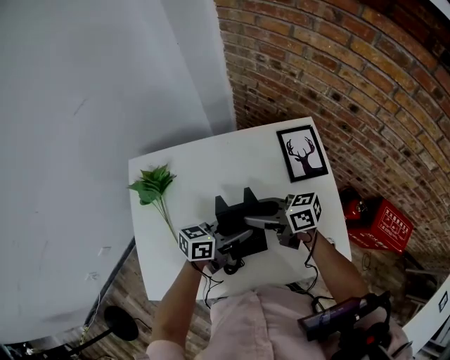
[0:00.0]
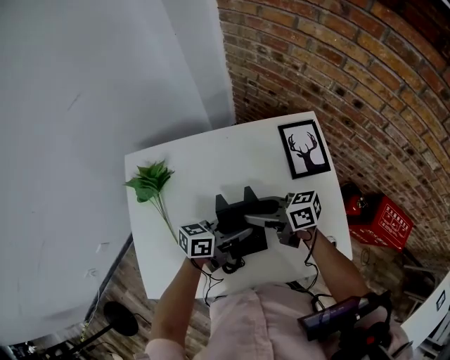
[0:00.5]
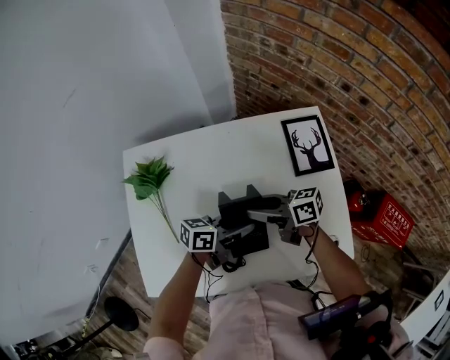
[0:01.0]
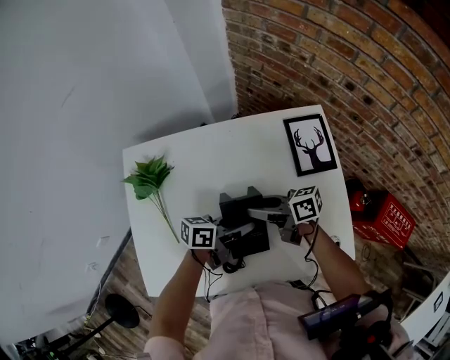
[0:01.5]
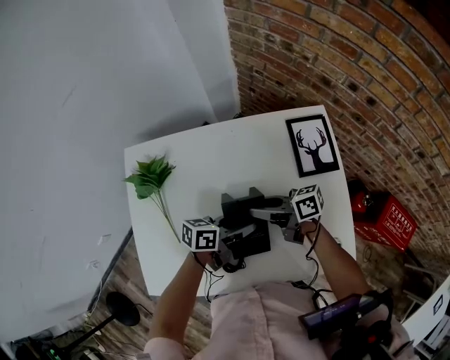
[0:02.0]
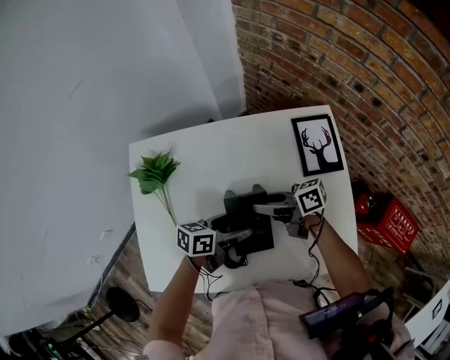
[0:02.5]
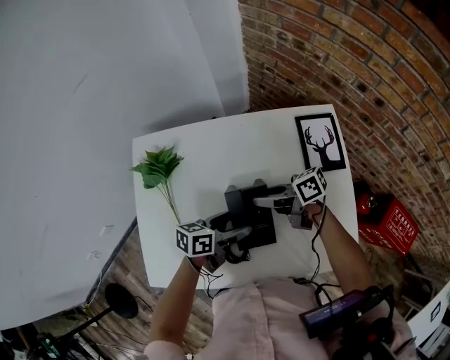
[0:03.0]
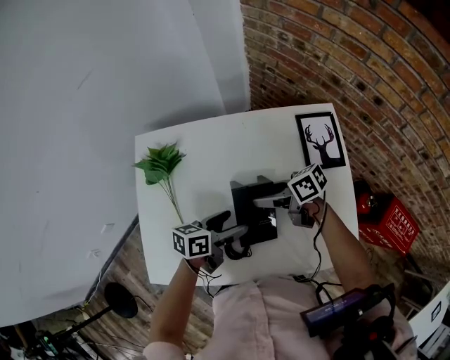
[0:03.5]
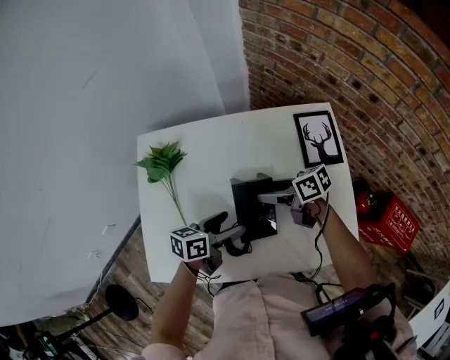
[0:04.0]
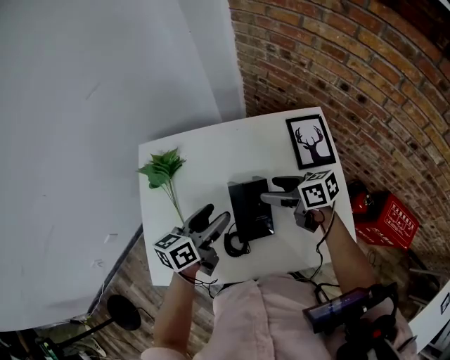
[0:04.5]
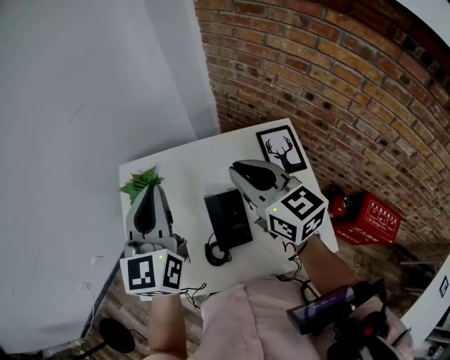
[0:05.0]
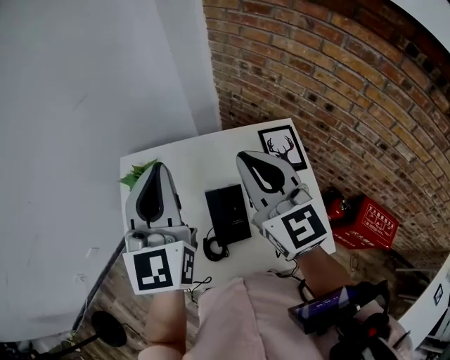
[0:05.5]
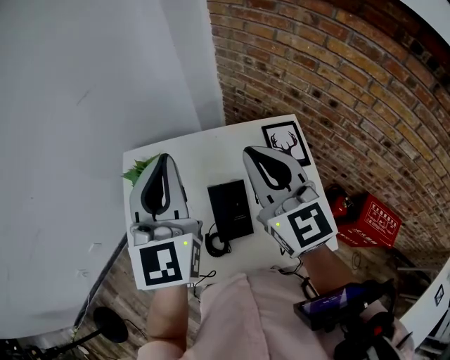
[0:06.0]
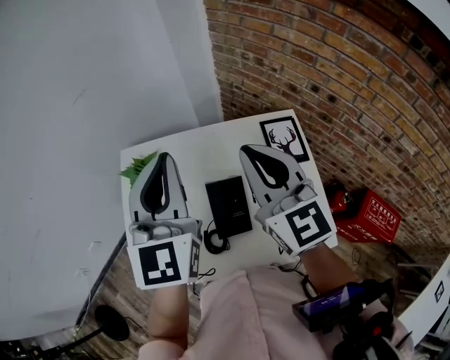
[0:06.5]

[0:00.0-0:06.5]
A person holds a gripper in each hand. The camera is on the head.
0:00.0 to 0:02.0: Both grippers travel together downward, some 5 cm.
0:02.0 to 0:04.5: The left gripper is displaced upward by approximately 10 cm, and changes its angle by roughly 30 degrees, while the right gripper shifts by roughly 5 cm, changes its angle by approximately 20 degrees, and opens its fingers.
0:04.5 to 0:06.5: The grippers both shift upward by roughly 25 cm. The right gripper turns by about 70 degrees, and closes its fingers. The left gripper turns by some 60 degrees, and closes its fingers.

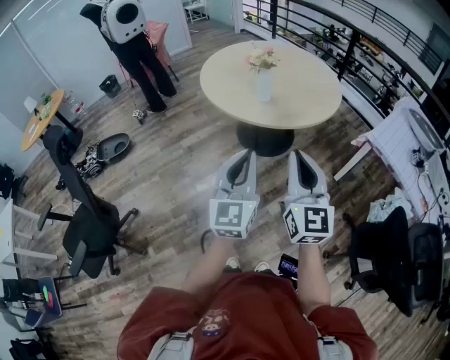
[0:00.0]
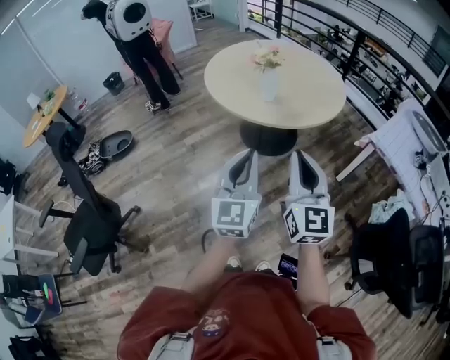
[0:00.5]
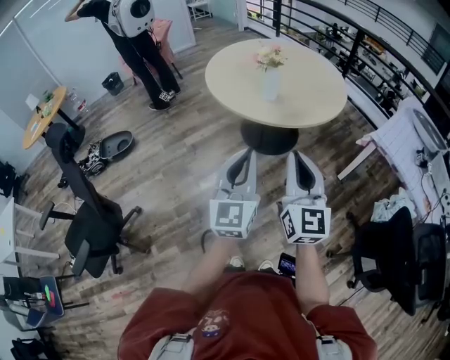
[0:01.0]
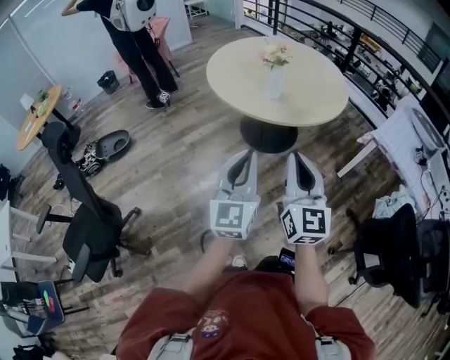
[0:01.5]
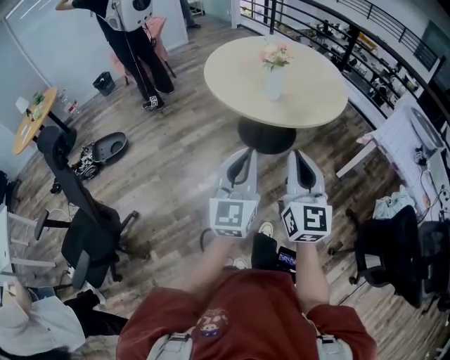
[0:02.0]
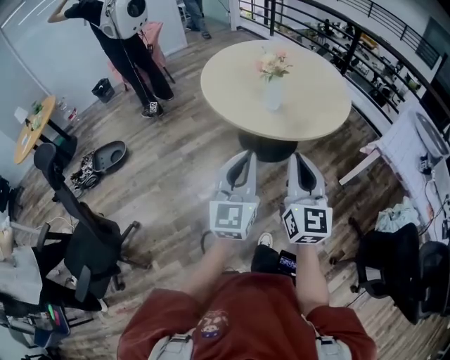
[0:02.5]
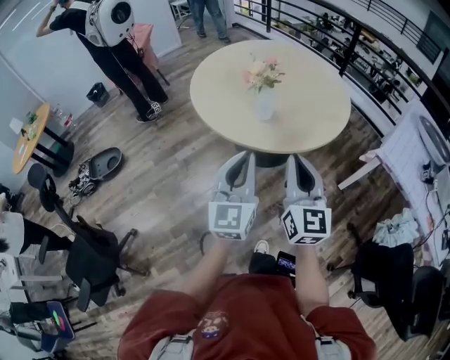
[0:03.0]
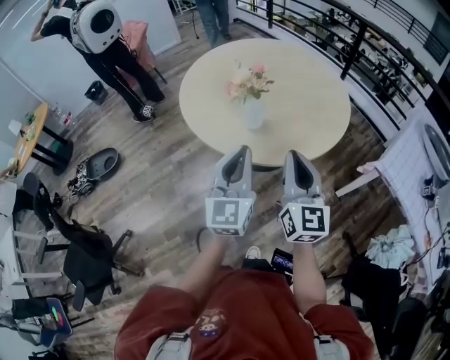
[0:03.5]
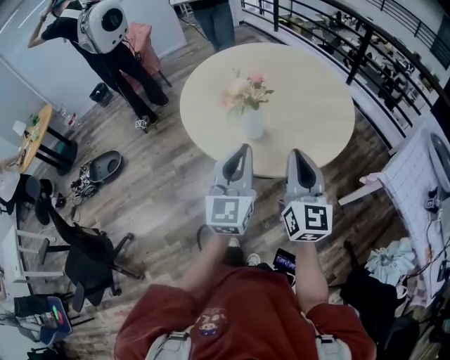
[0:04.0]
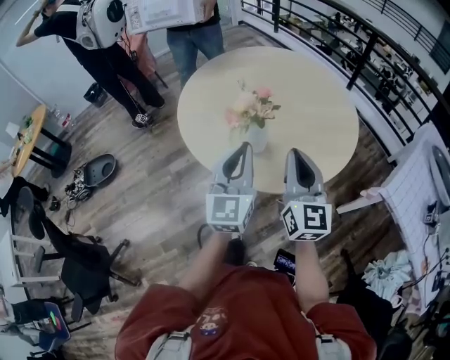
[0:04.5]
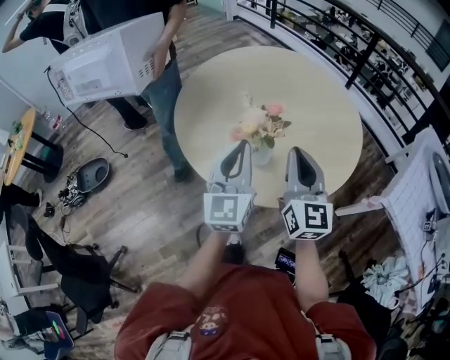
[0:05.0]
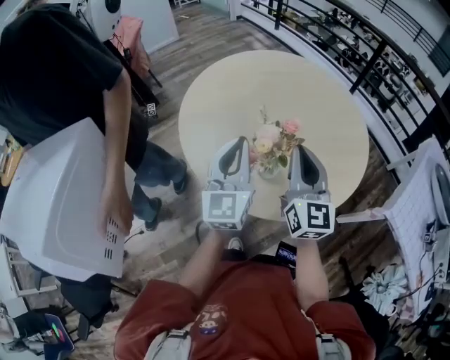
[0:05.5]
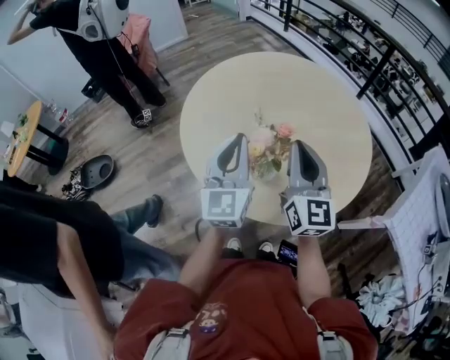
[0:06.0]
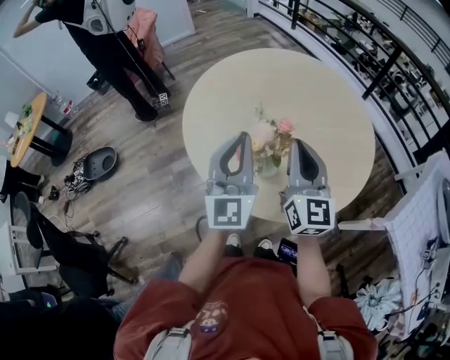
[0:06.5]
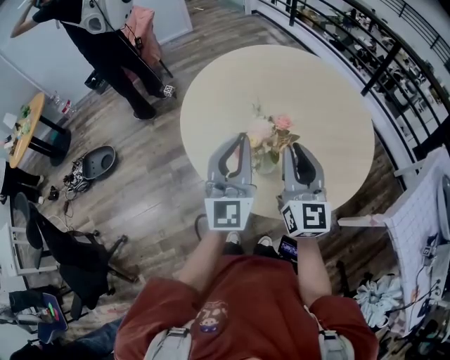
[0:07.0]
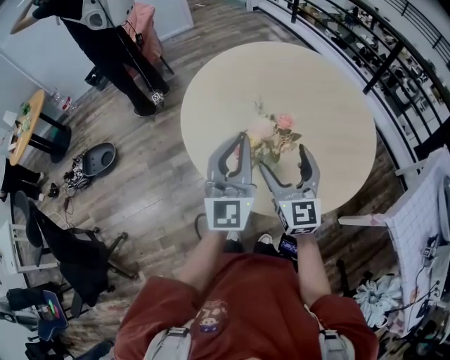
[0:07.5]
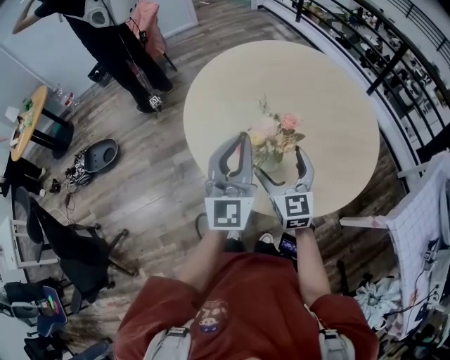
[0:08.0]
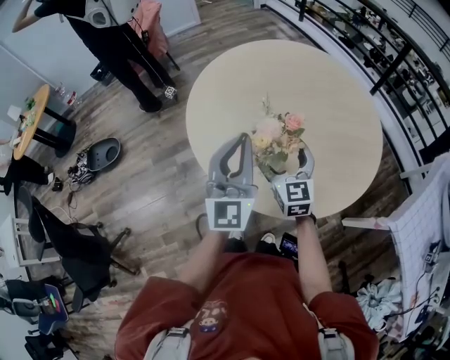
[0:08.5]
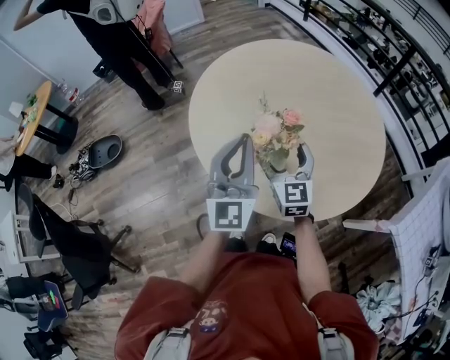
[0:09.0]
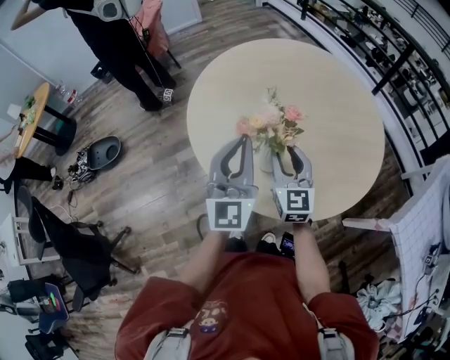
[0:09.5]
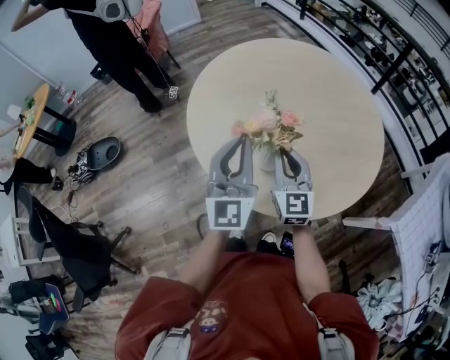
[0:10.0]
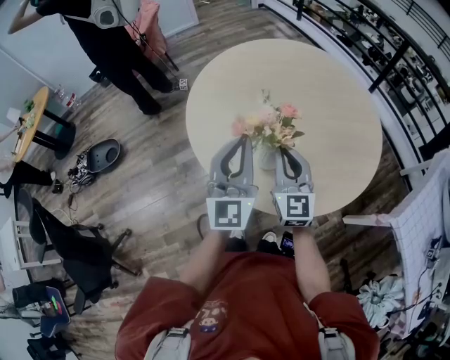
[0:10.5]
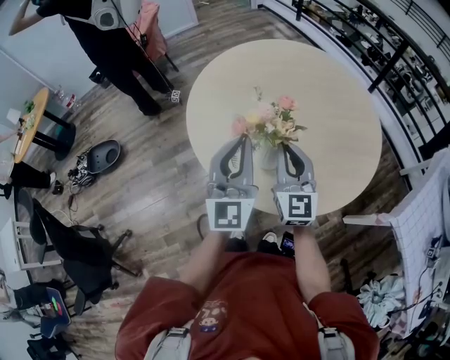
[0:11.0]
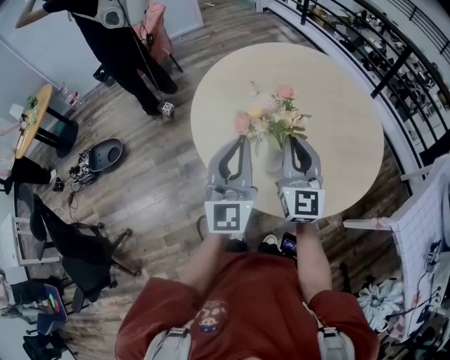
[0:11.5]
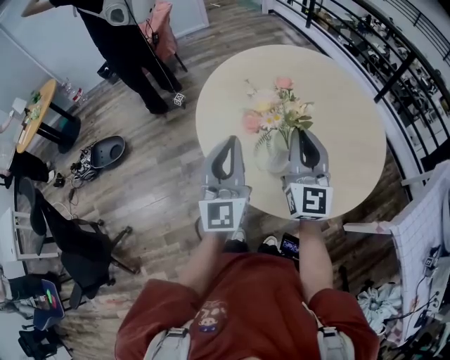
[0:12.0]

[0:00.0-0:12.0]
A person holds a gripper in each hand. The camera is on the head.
0:00.0 to 0:02.0: Both grippers travel together to the left, some 5 cm.
0:02.0 to 0:04.0: The grippers both shift forward and to the right by about 35 cm.
0:04.0 to 0:06.0: Both grippers travel together forward, some 25 cm.
0:06.0 to 0:08.0: The right gripper goes some 15 cm downward, swivels approximately 20 degrees, and opens.
0:08.0 to 0:10.0: The right gripper closes up.
0:10.0 to 0:12.0: The left gripper goes approximately 5 cm to the left. The right gripper travels upward by approximately 10 cm.

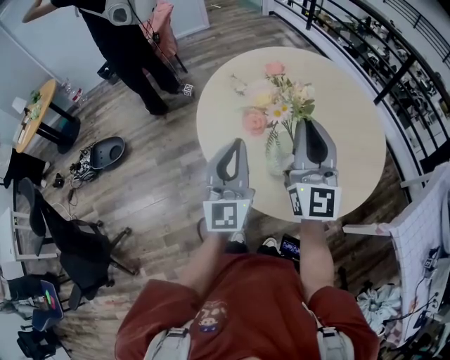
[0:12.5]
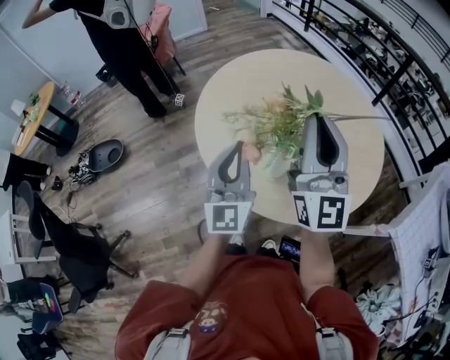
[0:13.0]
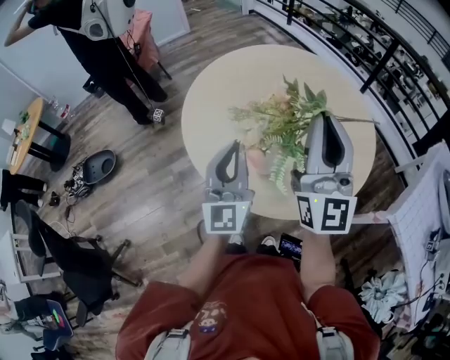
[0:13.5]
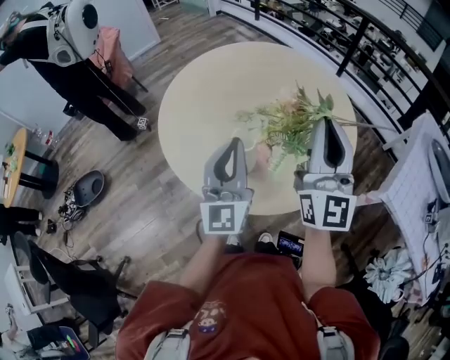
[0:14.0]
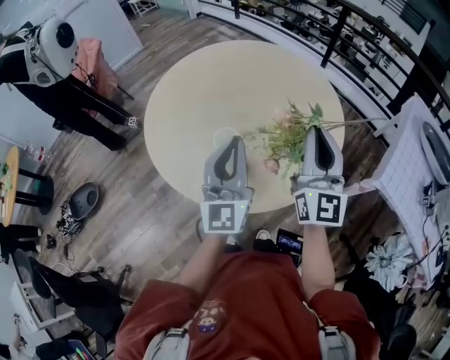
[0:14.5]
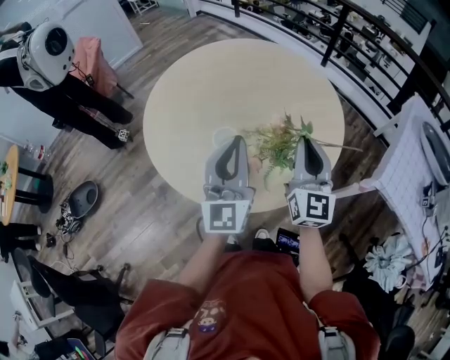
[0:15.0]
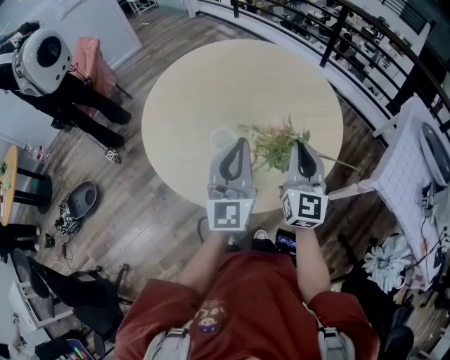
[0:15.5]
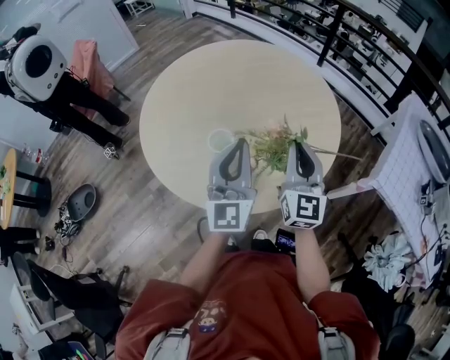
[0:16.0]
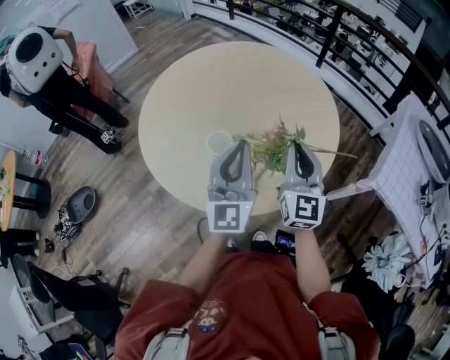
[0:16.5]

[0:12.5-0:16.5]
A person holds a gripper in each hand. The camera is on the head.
0:12.5 to 0:14.5: The two grippers go about 15 cm to the right. The right gripper swivels roughly 20 degrees.
0:14.5 to 0:16.5: The right gripper heads downward, covering roughly 10 cm.

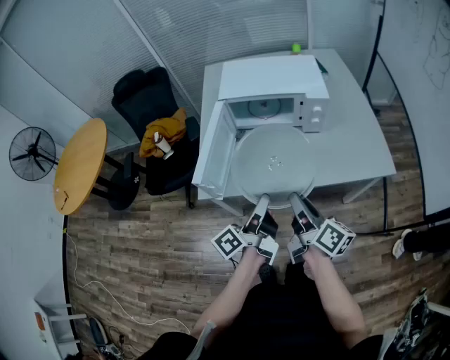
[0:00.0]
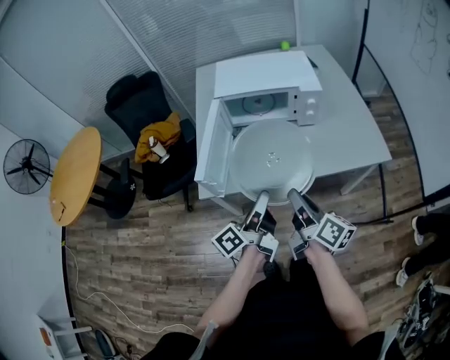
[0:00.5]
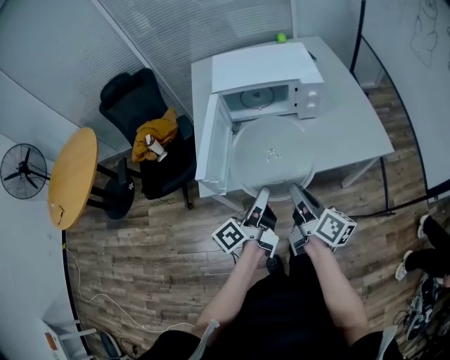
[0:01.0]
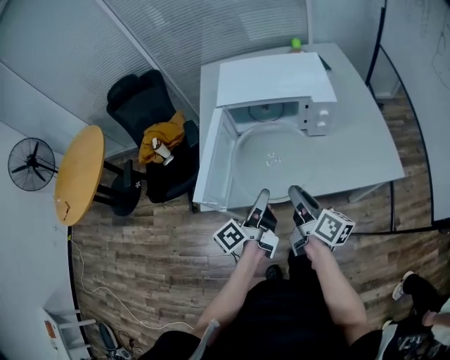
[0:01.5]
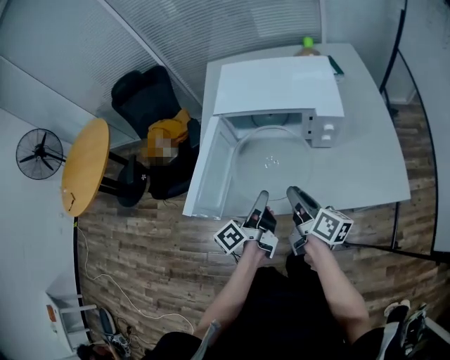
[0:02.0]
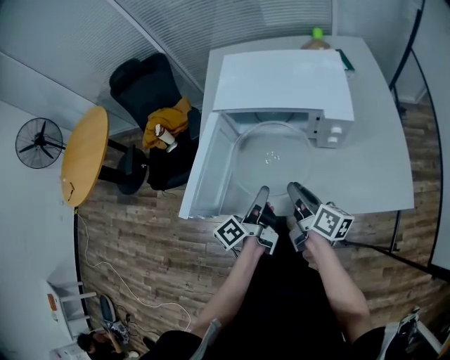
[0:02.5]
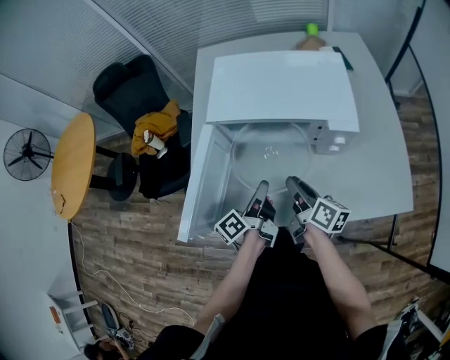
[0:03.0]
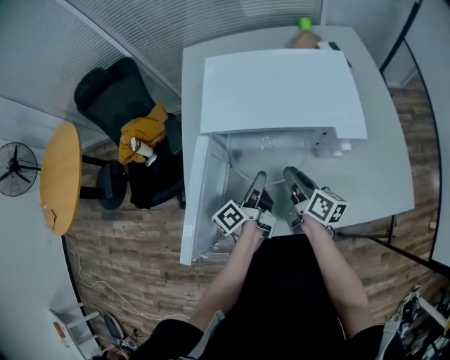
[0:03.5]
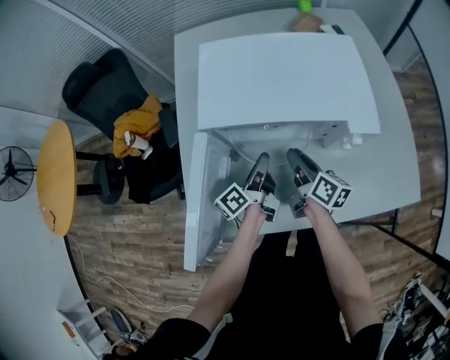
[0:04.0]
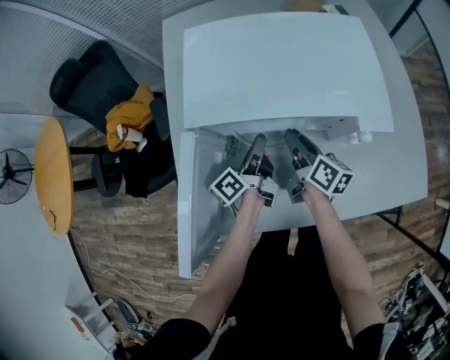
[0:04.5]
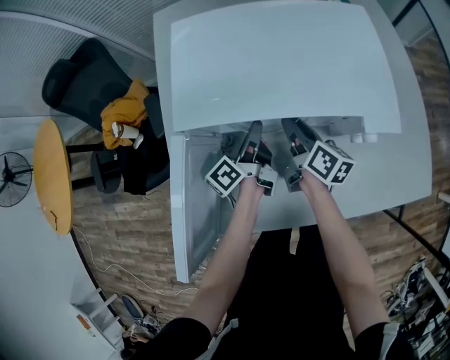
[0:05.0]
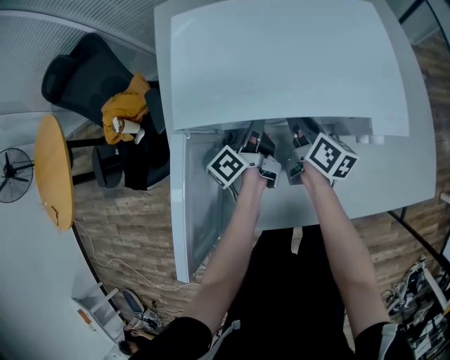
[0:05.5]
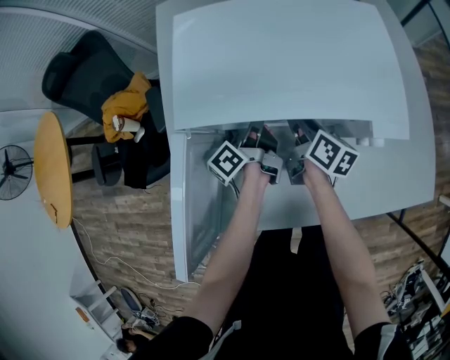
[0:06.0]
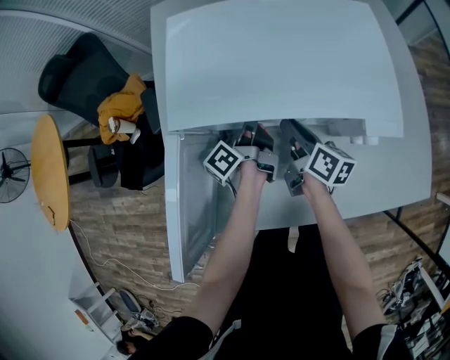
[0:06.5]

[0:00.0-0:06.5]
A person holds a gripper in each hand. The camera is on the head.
0:00.0 to 0:02.0: Both grippers move forward and downward, approximately 15 cm.
0:02.0 to 0:04.5: Both grippers travel together forward and downward, approximately 30 cm.
0:04.5 to 0:06.5: The left gripper is displaced forward by approximately 5 cm.
